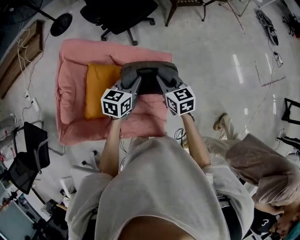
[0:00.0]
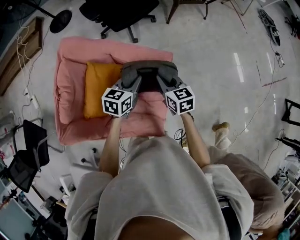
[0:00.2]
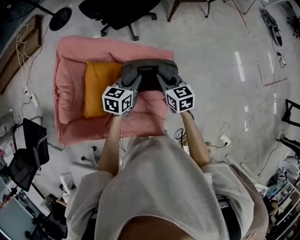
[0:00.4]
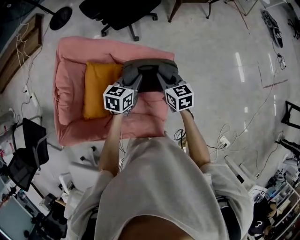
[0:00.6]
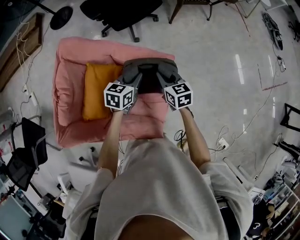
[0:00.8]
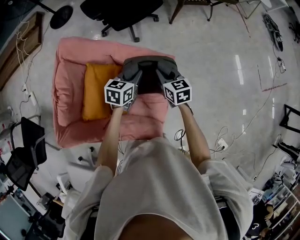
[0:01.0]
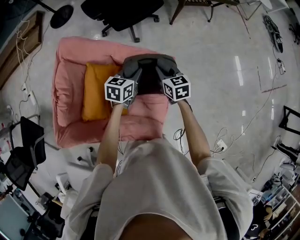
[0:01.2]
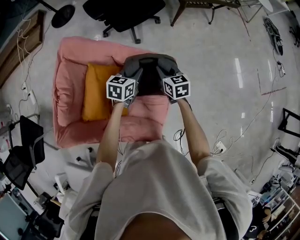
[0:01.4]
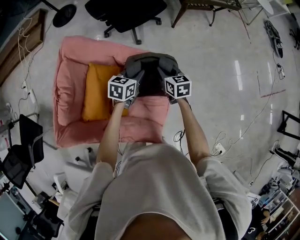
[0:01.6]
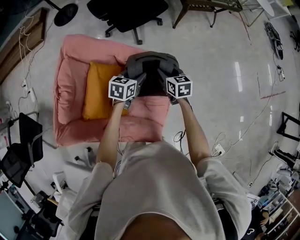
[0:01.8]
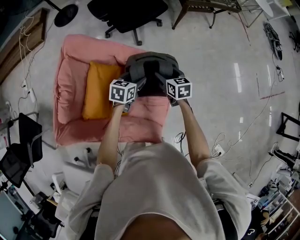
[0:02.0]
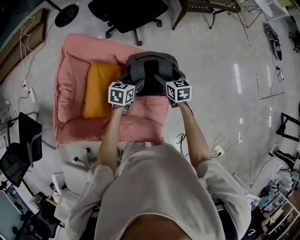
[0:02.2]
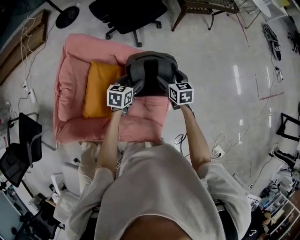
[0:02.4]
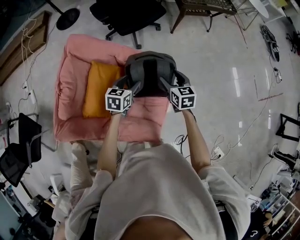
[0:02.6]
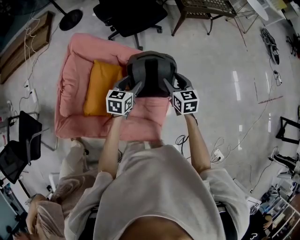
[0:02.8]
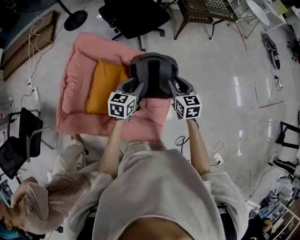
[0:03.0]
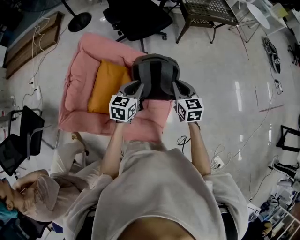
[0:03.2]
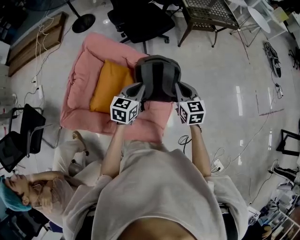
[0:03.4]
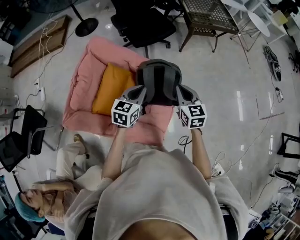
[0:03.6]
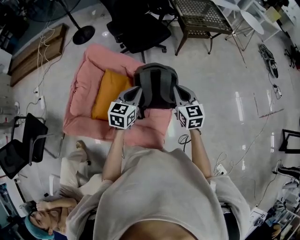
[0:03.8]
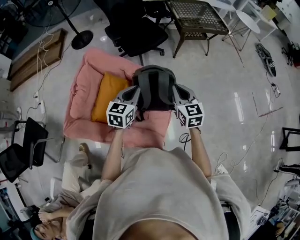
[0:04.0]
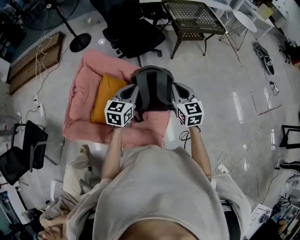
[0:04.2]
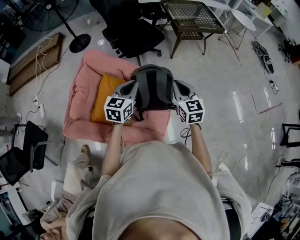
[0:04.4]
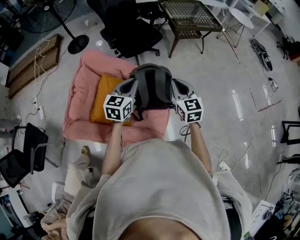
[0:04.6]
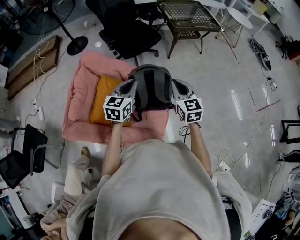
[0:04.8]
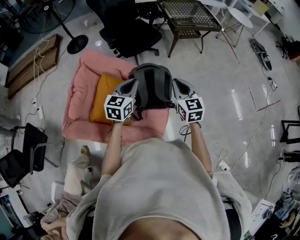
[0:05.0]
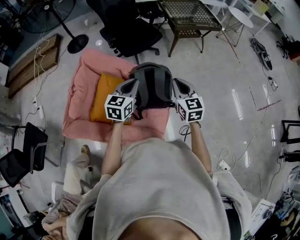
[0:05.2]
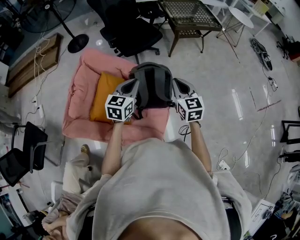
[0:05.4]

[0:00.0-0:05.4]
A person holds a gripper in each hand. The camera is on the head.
0:00.0 to 0:01.4: Both grippers move forward and downward, some 15 cm.
0:01.4 to 0:02.8: The left gripper is displaced backward by some 10 cm, and opens up, while the right gripper shifts roughly 10 cm backward and upward, and opens its fingers.
0:02.8 to 0:04.0: Both grippers travel together upward and backward, approximately 15 cm. The left gripper closes. The right gripper closes its fingers.
0:04.0 to 0:05.4: The grippers make only small movements.

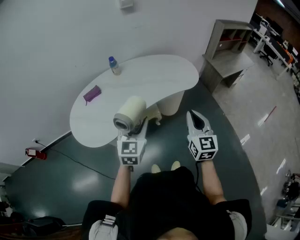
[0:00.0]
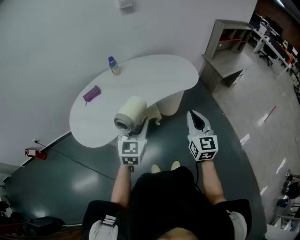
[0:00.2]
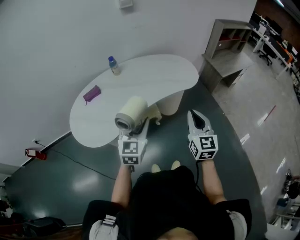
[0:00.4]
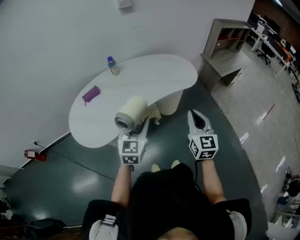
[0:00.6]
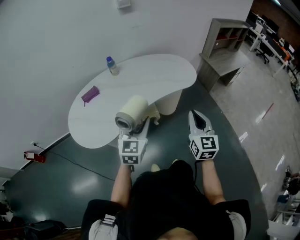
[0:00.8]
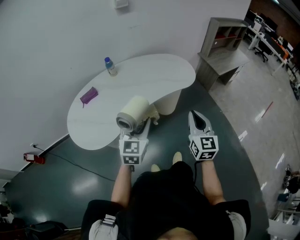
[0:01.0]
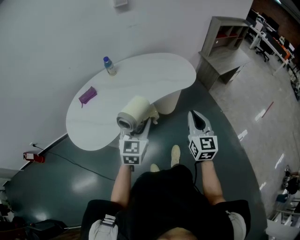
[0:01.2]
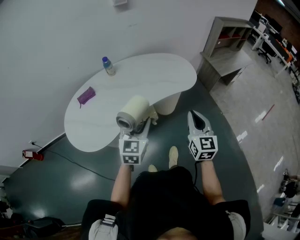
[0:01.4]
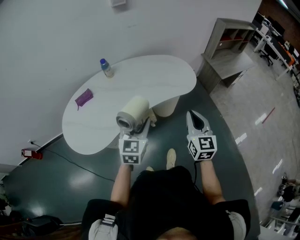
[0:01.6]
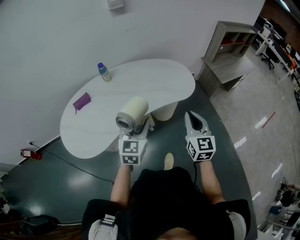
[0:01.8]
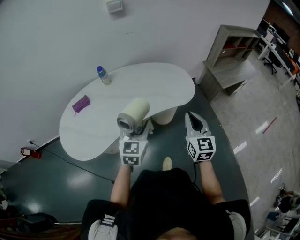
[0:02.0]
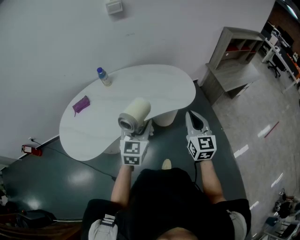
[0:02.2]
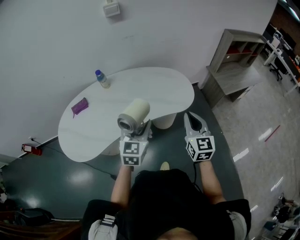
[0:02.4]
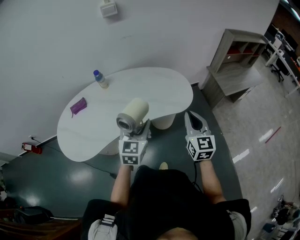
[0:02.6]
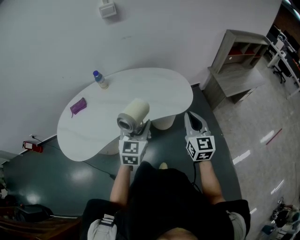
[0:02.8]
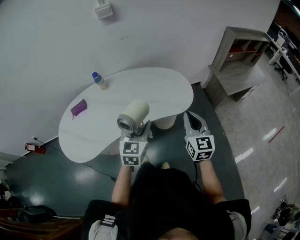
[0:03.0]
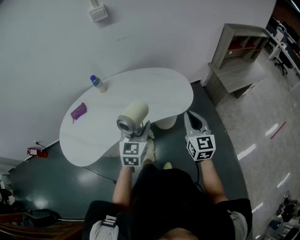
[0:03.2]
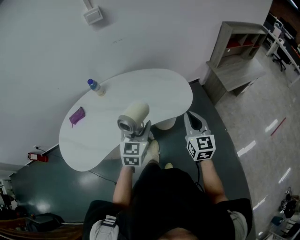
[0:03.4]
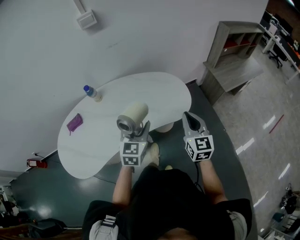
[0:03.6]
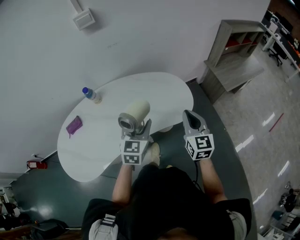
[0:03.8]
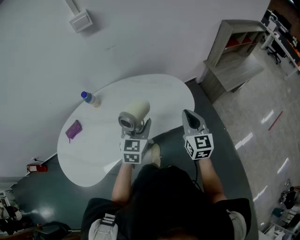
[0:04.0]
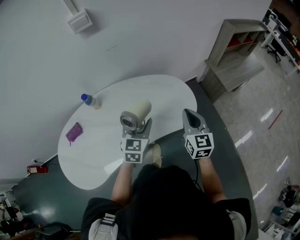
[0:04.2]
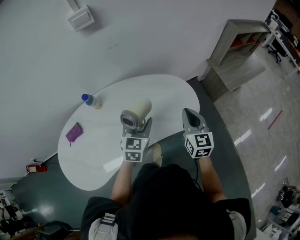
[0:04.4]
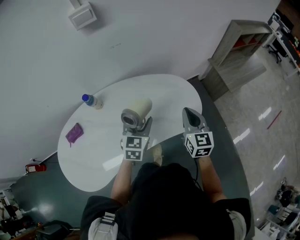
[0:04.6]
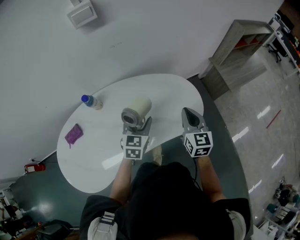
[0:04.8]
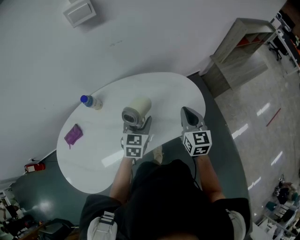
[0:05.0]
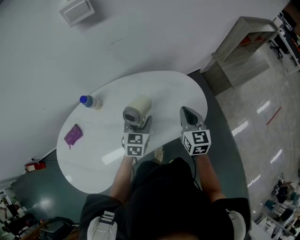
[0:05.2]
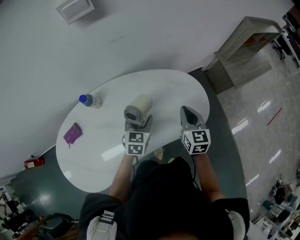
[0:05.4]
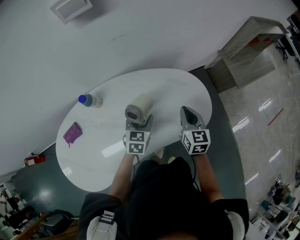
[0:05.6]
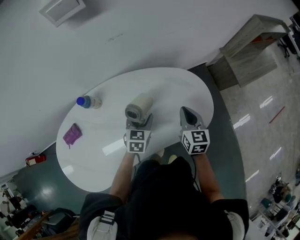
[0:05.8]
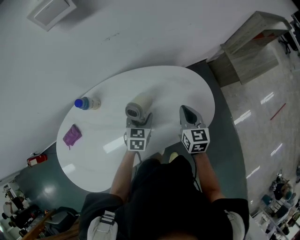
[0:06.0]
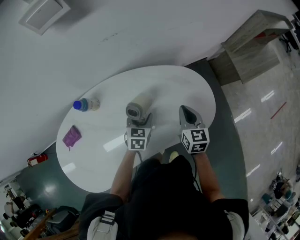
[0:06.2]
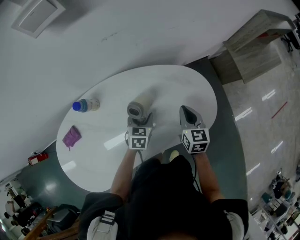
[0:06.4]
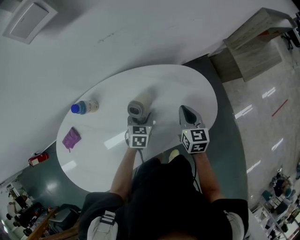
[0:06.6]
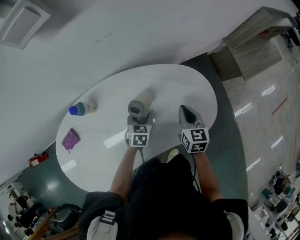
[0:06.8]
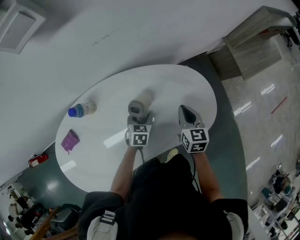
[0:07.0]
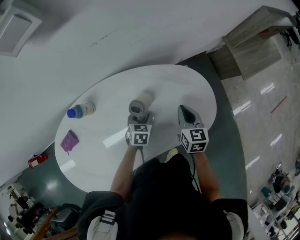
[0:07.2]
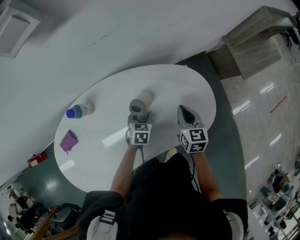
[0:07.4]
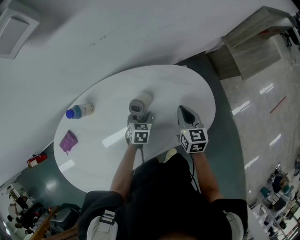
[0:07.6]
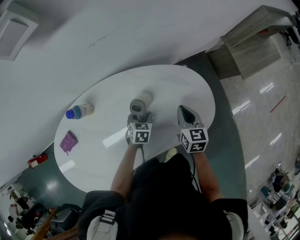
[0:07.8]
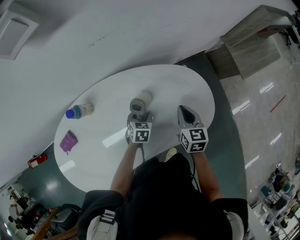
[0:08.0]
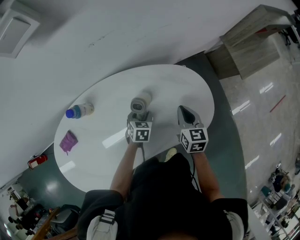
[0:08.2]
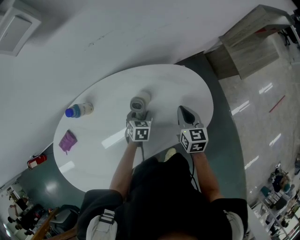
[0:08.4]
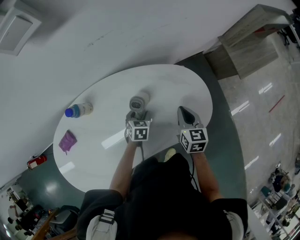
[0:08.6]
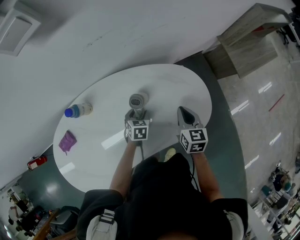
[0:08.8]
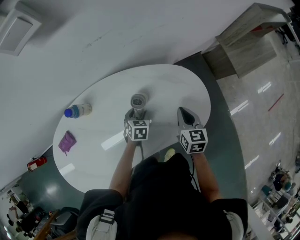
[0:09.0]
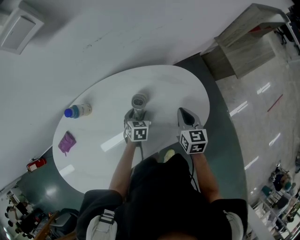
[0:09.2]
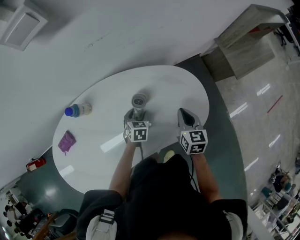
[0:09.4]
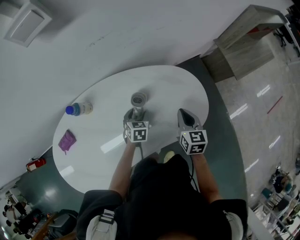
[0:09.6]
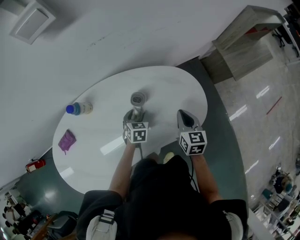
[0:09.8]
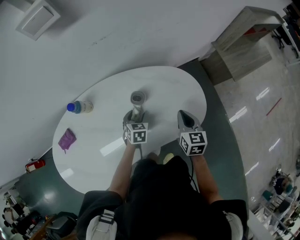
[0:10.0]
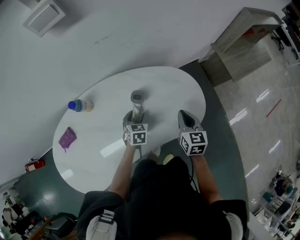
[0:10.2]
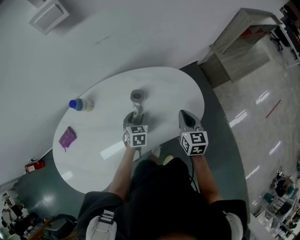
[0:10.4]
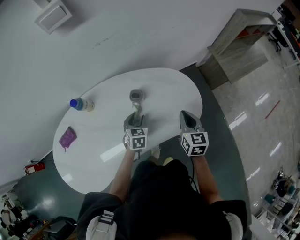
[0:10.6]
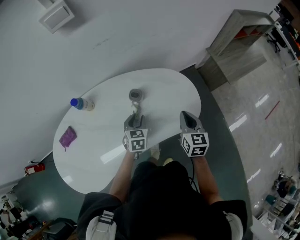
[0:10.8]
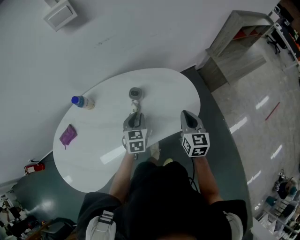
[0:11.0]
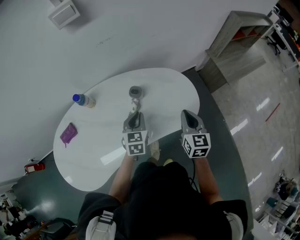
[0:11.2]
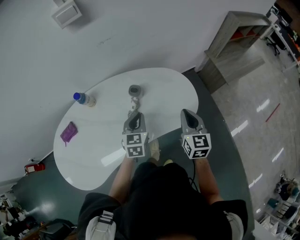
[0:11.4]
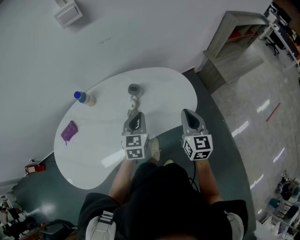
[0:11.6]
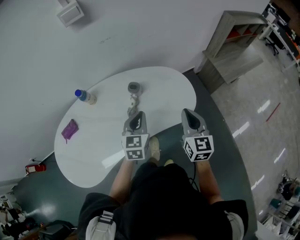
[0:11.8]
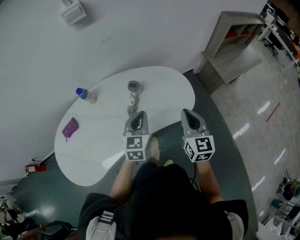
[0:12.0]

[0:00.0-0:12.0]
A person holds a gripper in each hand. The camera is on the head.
0:00.0 to 0:01.6: The left gripper travels forward and to the right by roughly 10 cm, while the right gripper heads forward, covering approximately 10 cm.
0:01.6 to 0:03.0: The left gripper heads to the right and forward, covering about 20 cm. The right gripper goes roughly 20 cm forward and to the right.
0:03.0 to 0:04.4: Both grippers travel together forward, approximately 20 cm.
0:04.4 to 0:06.0: The right gripper heads downward, forward and to the left, covering approximately 20 cm. Meanwhile the left gripper heads downward and forward, covering some 20 cm.
0:06.0 to 0:07.6: The left gripper moves downward, some 10 cm. The right gripper travels downward by about 5 cm.
0:07.6 to 0:09.0: The grippers stay close to where they were, moving slightly.
0:09.0 to 0:10.4: The left gripper travels upward by roughly 5 cm, while the right gripper travels backward and upward by some 10 cm.
0:10.4 to 0:12.0: The grippers both shift upward and backward by about 20 cm. The left gripper turns by approximately 30 degrees, and closes.

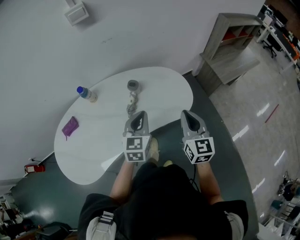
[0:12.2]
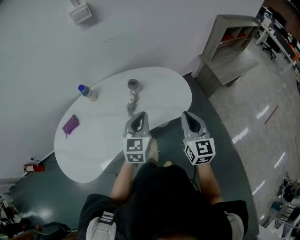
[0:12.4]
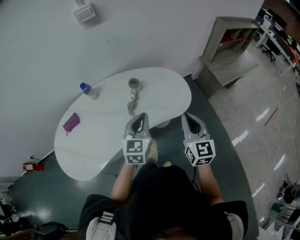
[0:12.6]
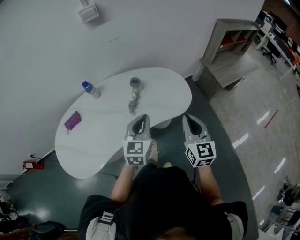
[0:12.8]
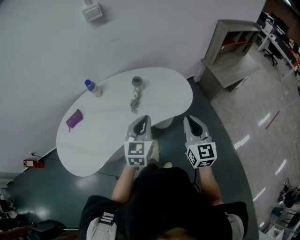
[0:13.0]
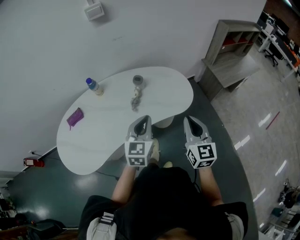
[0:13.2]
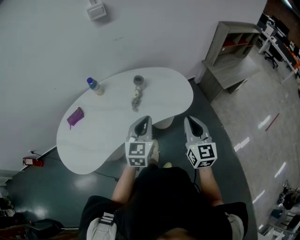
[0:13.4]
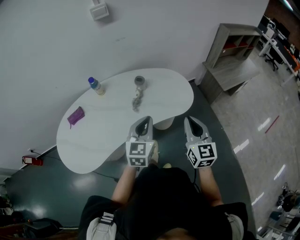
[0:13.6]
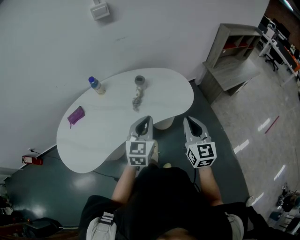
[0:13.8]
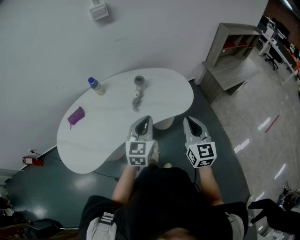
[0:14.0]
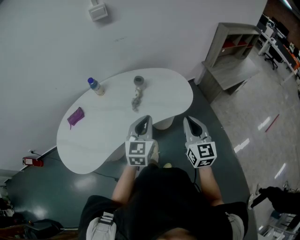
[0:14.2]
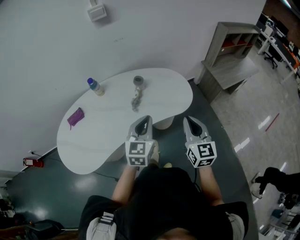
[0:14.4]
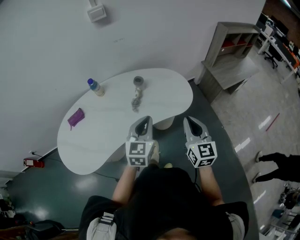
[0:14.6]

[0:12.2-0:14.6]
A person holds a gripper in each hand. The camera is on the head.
0:12.2 to 0:13.4: The grippers both shift backward by roughly 10 cm.
0:13.4 to 0:14.6: The two grippers keep their place.

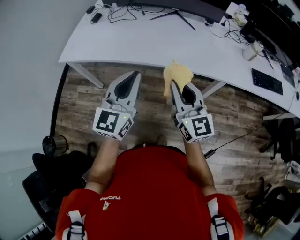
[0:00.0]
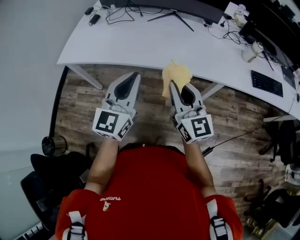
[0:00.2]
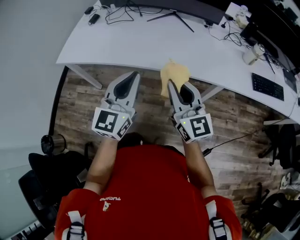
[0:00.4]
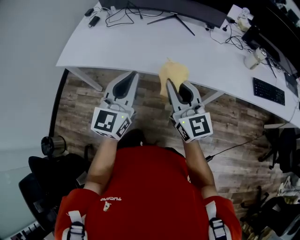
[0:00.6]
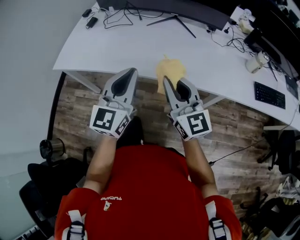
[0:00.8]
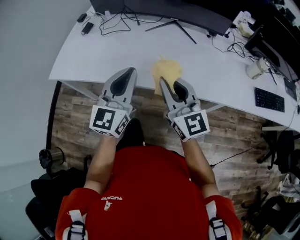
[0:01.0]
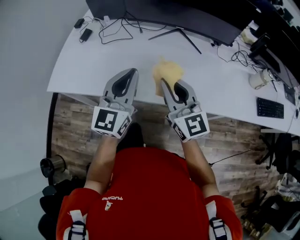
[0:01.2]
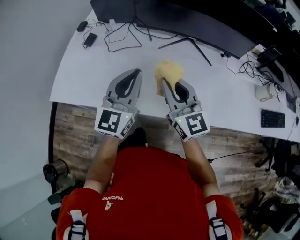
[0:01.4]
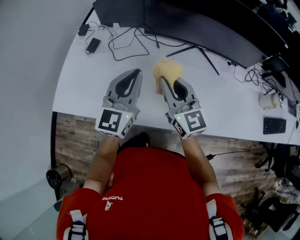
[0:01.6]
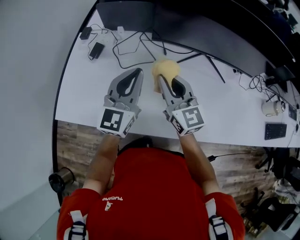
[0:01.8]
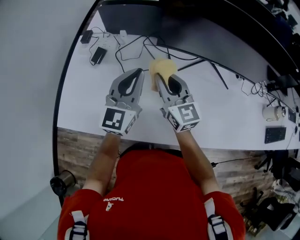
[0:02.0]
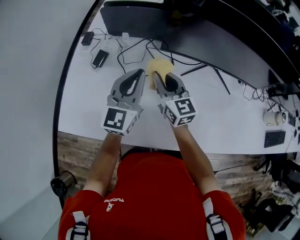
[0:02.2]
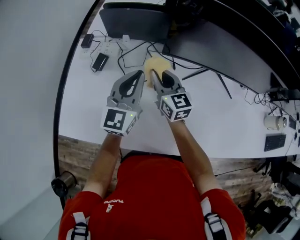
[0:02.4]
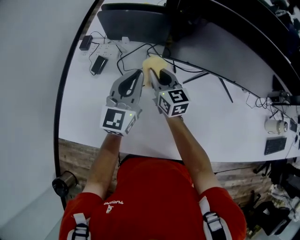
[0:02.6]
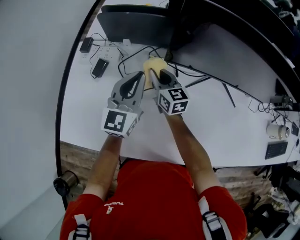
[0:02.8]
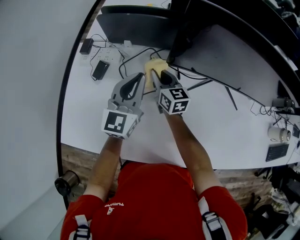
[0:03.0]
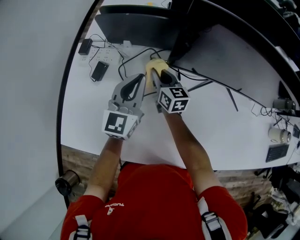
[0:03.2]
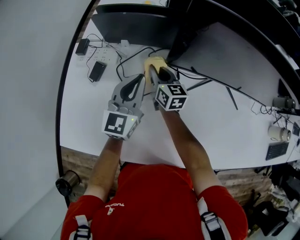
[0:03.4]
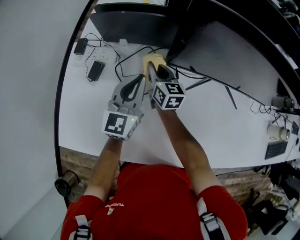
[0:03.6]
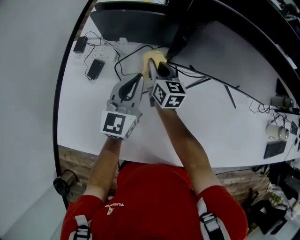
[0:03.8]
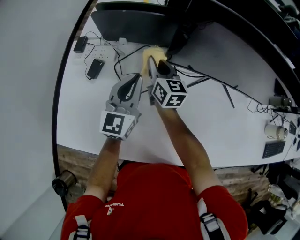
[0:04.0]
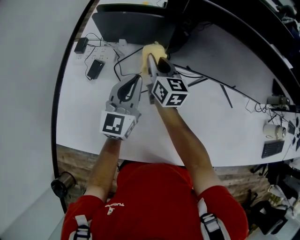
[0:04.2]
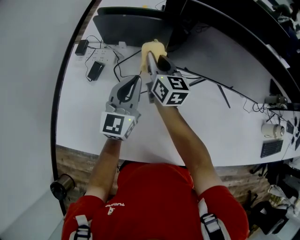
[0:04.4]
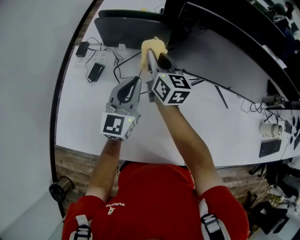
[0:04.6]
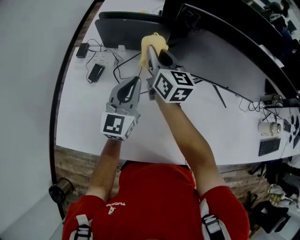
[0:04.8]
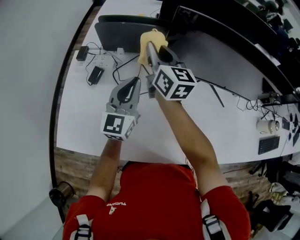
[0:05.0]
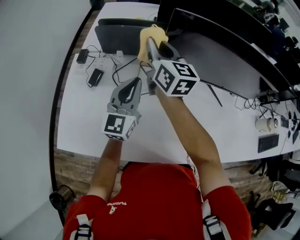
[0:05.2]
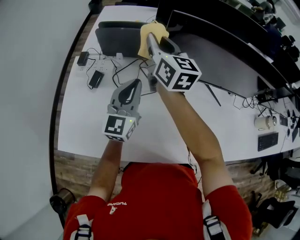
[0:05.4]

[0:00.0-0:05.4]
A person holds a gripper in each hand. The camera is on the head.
0:00.0 to 0:01.4: Both grippers travel together forward, about 30 cm.
0:01.4 to 0:02.8: The left gripper heads forward and to the left, covering some 30 cm. The right gripper heads forward, to the left and downward, covering about 40 cm, and changes its angle by some 20 degrees.
0:02.8 to 0:04.0: The right gripper changes place by some 5 cm.
0:04.0 to 0:05.4: The right gripper goes about 20 cm upward. The left gripper shifts some 5 cm upward.
